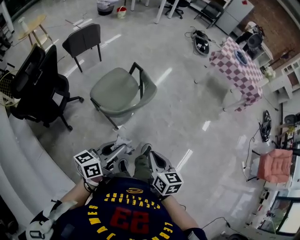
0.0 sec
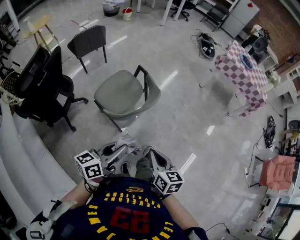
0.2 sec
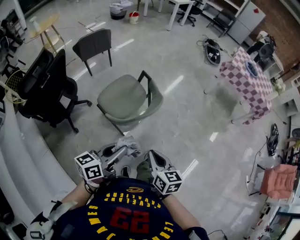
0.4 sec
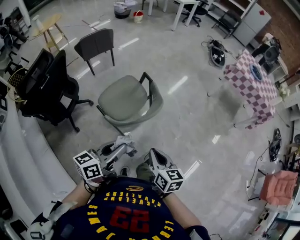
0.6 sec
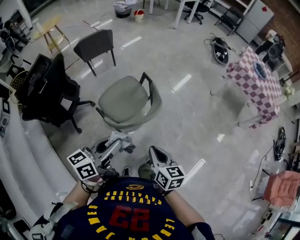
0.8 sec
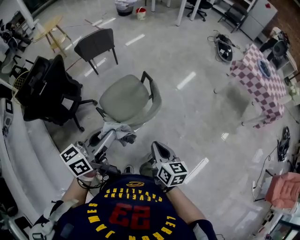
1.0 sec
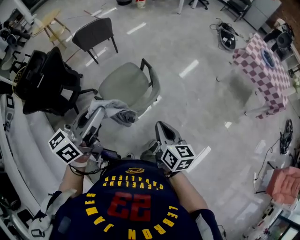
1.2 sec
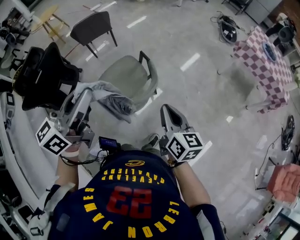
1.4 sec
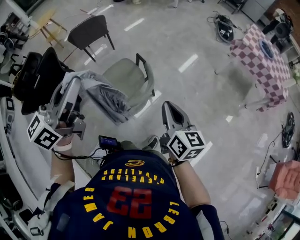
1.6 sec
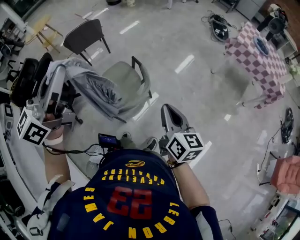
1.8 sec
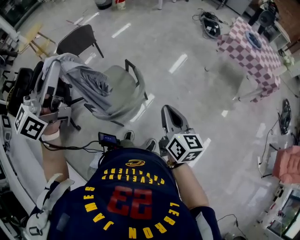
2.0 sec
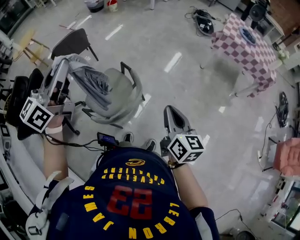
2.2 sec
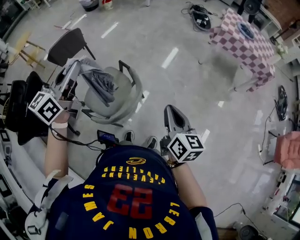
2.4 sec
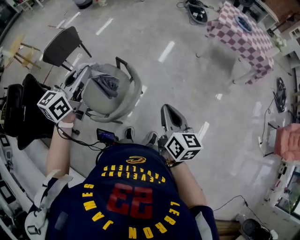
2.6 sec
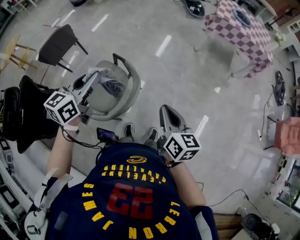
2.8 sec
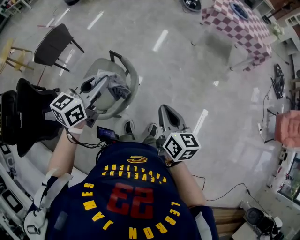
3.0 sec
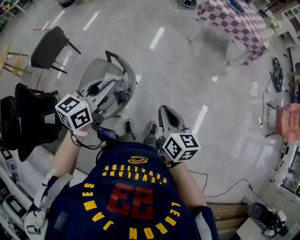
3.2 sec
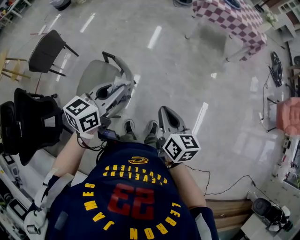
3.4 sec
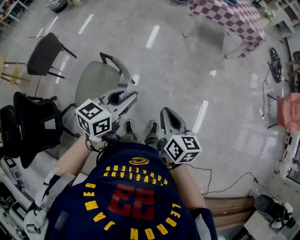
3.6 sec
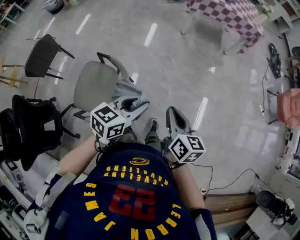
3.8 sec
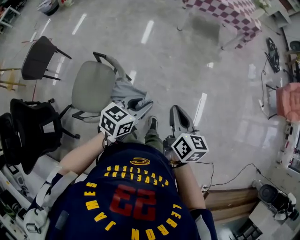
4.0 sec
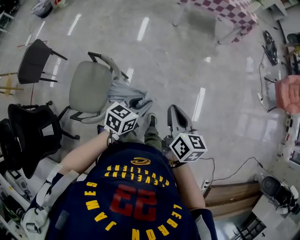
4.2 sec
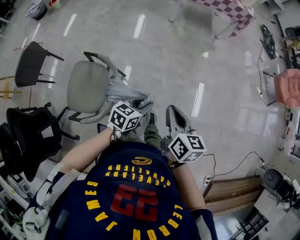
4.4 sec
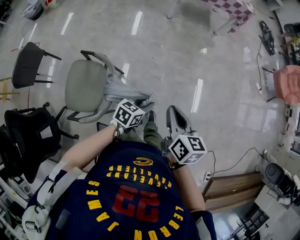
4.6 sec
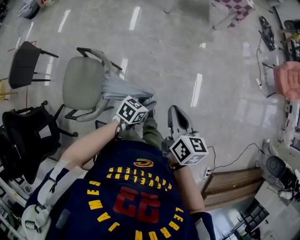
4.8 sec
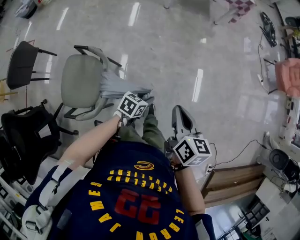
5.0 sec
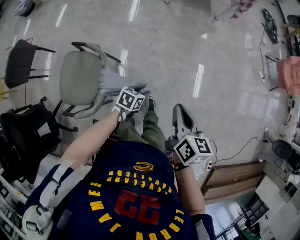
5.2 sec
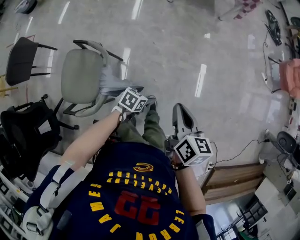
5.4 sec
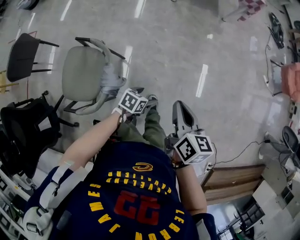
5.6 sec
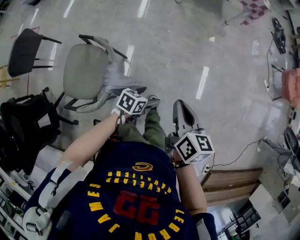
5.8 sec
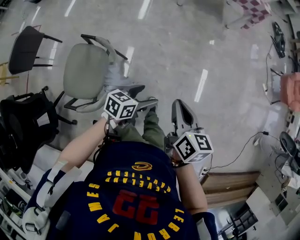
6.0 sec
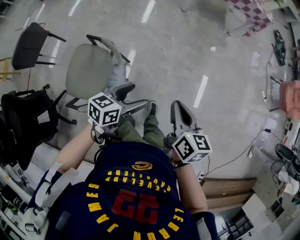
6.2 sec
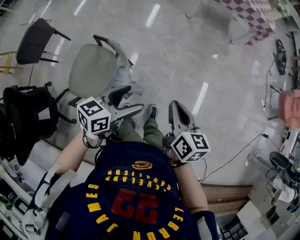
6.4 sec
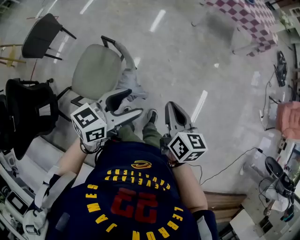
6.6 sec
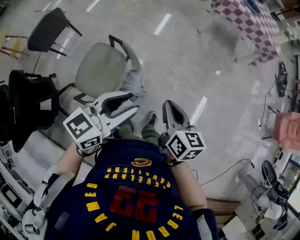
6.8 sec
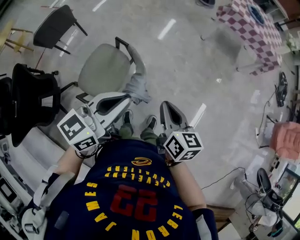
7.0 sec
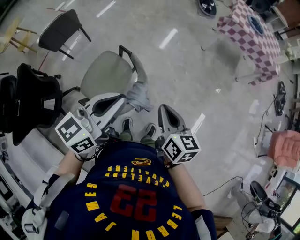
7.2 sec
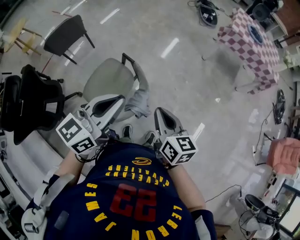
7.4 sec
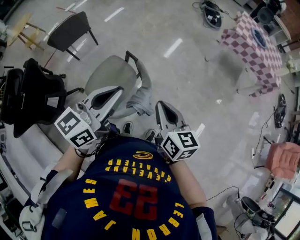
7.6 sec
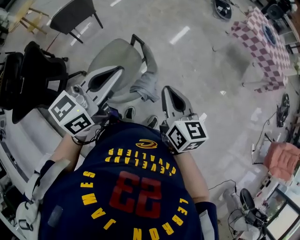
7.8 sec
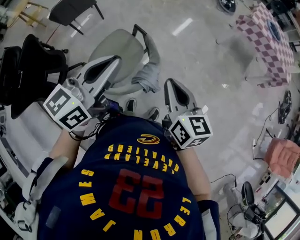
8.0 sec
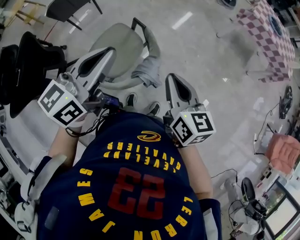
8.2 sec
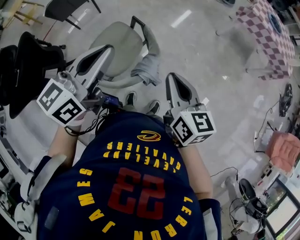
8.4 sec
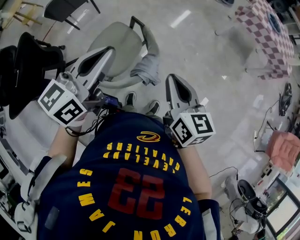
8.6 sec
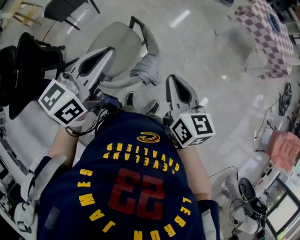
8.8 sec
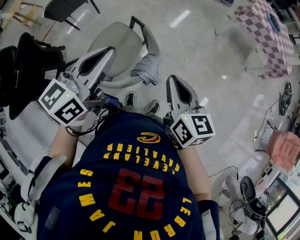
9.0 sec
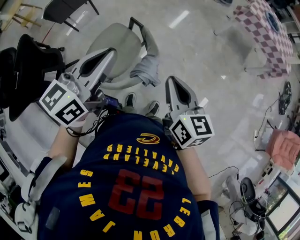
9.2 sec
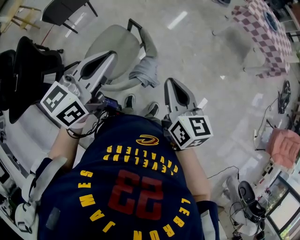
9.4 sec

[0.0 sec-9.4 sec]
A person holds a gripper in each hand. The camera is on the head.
0.0 sec to 1.6 sec: The left gripper is displaced forward and upward by roughly 30 cm, and turns by roughly 40 degrees, while the right gripper is displaced forward and to the right by roughly 30 cm.
1.6 sec to 3.2 sec: The left gripper travels downward by about 20 cm, and turns by approximately 40 degrees. Meanwhile the right gripper shifts approximately 5 cm downward, and changes its angle by some 20 degrees.
3.2 sec to 4.8 sec: The left gripper shifts approximately 30 cm downward, and swivels some 40 degrees. Meanwhile the right gripper changes place by roughly 15 cm, and changes its angle by approximately 20 degrees.
4.8 sec to 6.2 sec: The left gripper travels to the left and upward by some 15 cm, turns by about 20 degrees, and opens up.
6.2 sec to 7.8 sec: The right gripper shifts by about 20 cm, and swivels some 40 degrees; the left gripper heads upward, covering approximately 25 cm, swivels about 50 degrees, and closes.
7.8 sec to 9.4 sec: The grippers make only small movements.

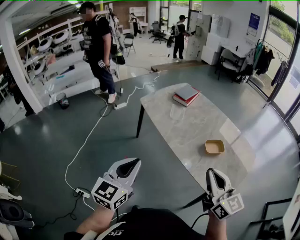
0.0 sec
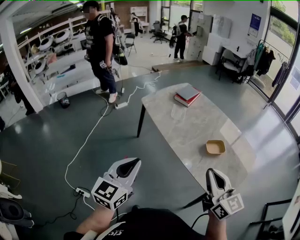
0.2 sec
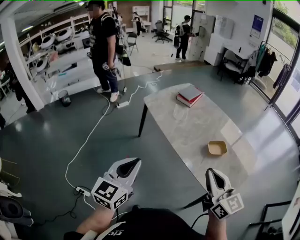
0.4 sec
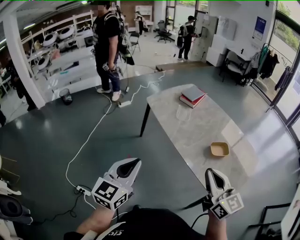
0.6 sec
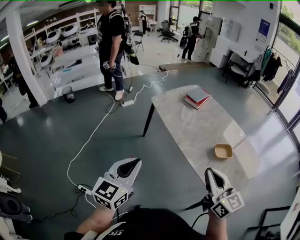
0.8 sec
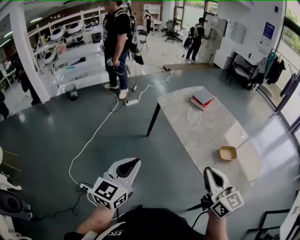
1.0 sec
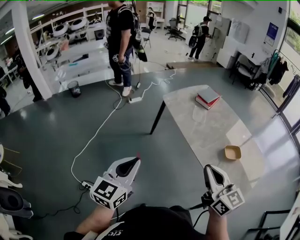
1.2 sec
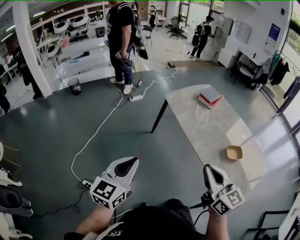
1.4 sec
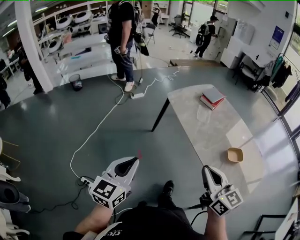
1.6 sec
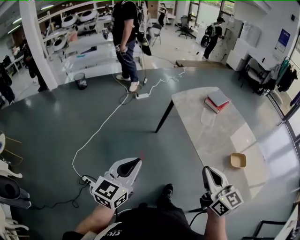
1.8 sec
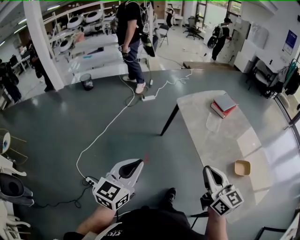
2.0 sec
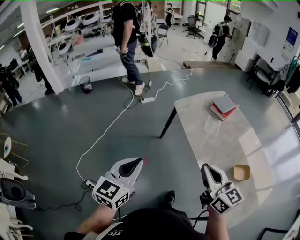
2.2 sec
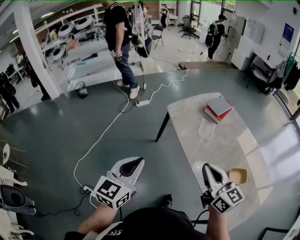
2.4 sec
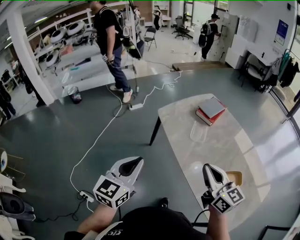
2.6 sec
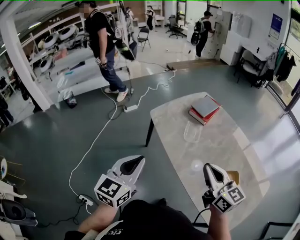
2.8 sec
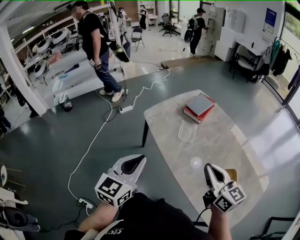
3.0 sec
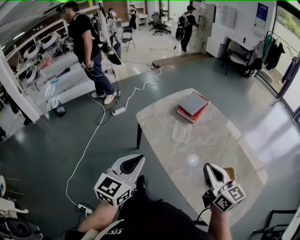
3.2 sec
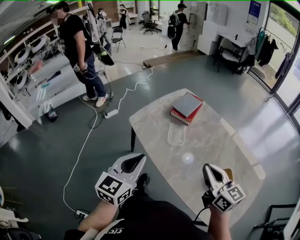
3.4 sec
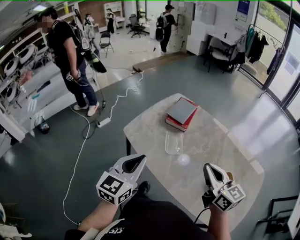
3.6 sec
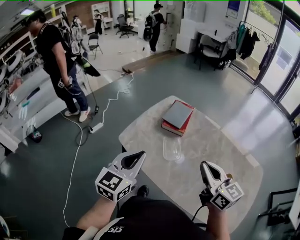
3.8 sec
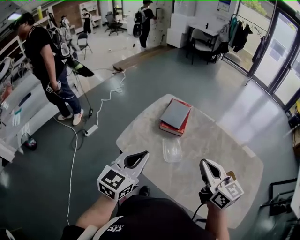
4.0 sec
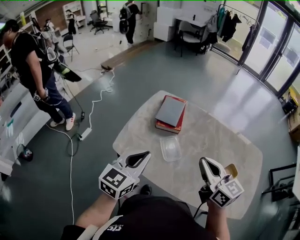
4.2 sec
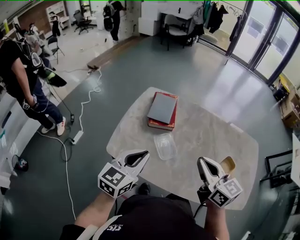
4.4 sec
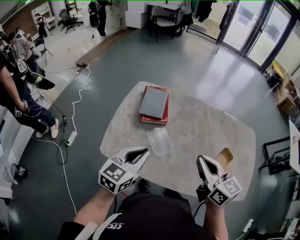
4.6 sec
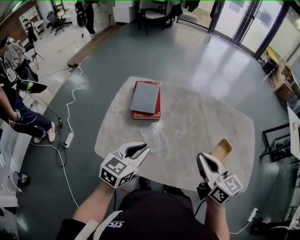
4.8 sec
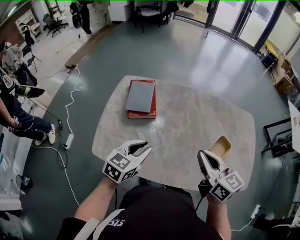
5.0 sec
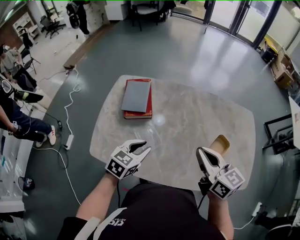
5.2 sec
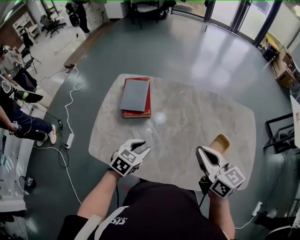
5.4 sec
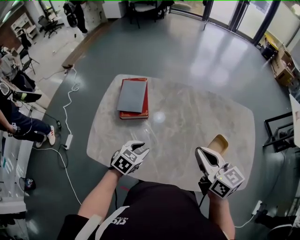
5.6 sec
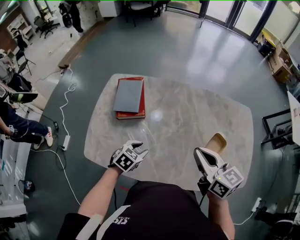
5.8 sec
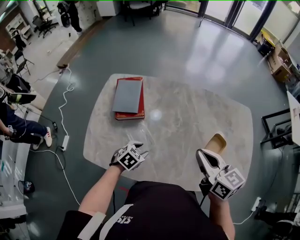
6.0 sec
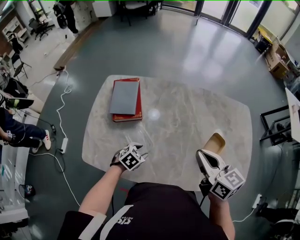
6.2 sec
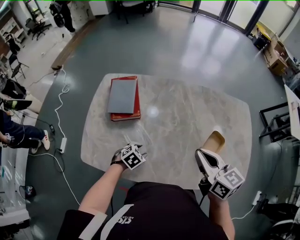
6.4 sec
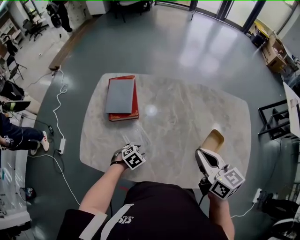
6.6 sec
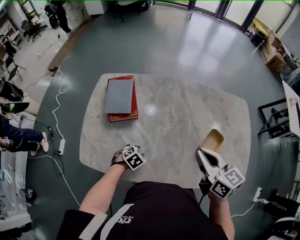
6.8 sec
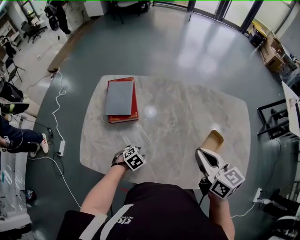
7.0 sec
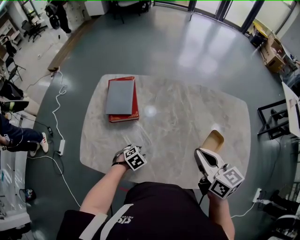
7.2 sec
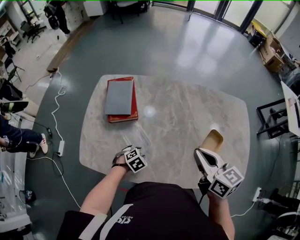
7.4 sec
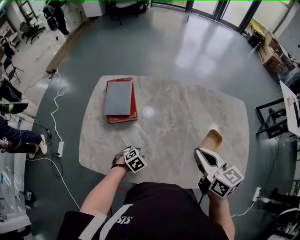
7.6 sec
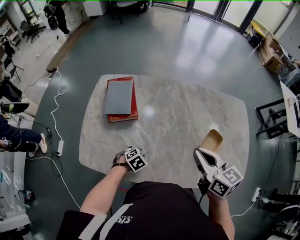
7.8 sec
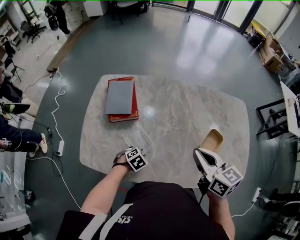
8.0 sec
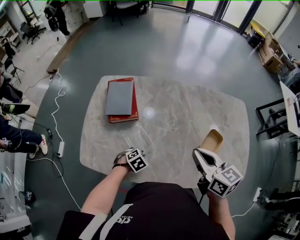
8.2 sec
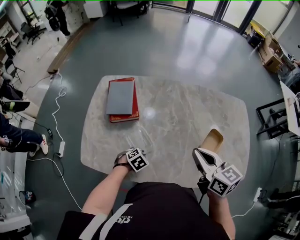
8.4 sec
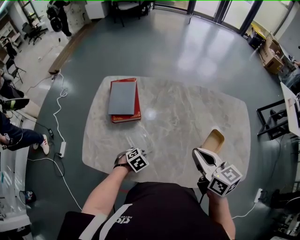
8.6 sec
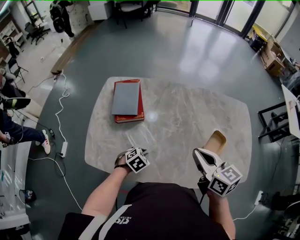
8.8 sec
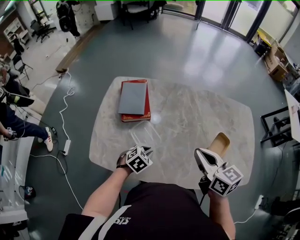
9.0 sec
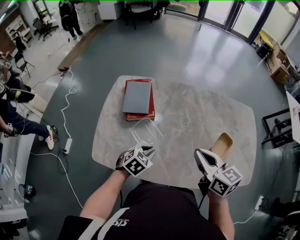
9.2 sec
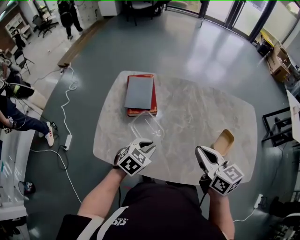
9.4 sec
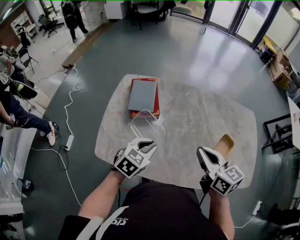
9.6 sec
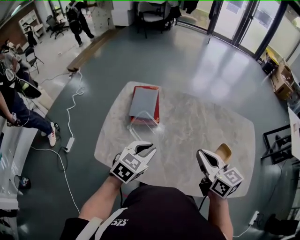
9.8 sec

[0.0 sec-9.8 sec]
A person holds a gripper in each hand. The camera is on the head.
0.0 sec to 1.4 sec: The two grippers go some 15 cm to the left.
1.4 sec to 2.8 sec: Both grippers move forward and to the right, roughly 25 cm.
2.8 sec to 4.2 sec: The right gripper changes place by roughly 20 cm, and turns by roughly 30 degrees. The left gripper shifts by approximately 30 cm, and swivels approximately 40 degrees.
4.2 sec to 5.6 sec: The right gripper travels to the right by approximately 10 cm. Meanwhile the left gripper travels downward, to the right and forward by some 25 cm, tips its fingers downward by about 30 degrees, and opens up.
5.6 sec to 7.0 sec: The left gripper shifts about 15 cm downward, and turns by approximately 30 degrees.
7.0 sec to 8.4 sec: The left gripper closes.
8.4 sec to 9.8 sec: The left gripper moves upward, approximately 25 cm, and angles its fingers upward, by about 30 degrees, while the right gripper shifts roughly 5 cm to the left.

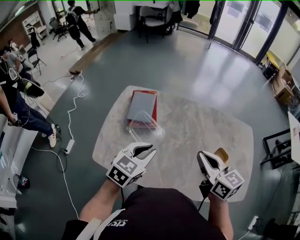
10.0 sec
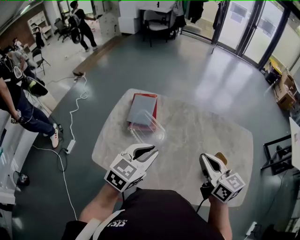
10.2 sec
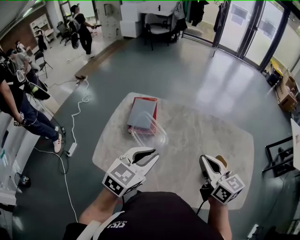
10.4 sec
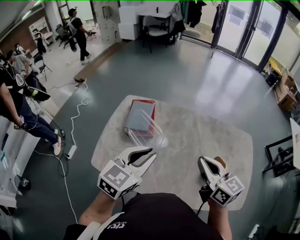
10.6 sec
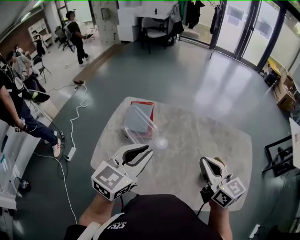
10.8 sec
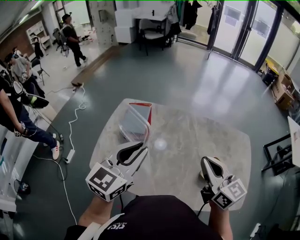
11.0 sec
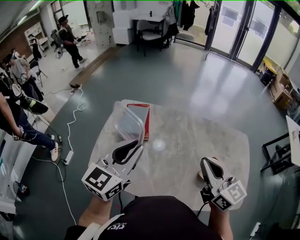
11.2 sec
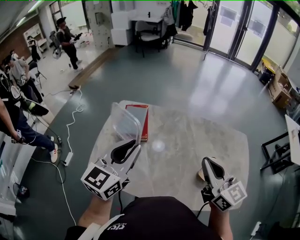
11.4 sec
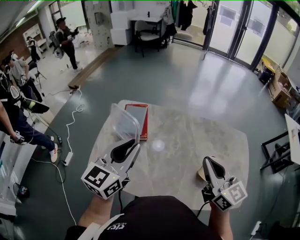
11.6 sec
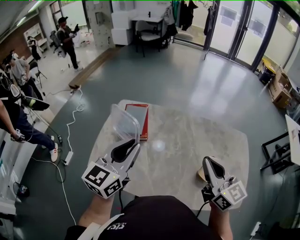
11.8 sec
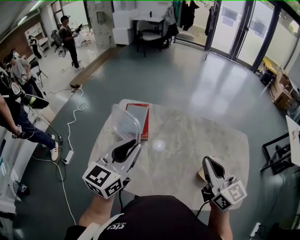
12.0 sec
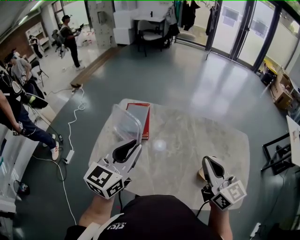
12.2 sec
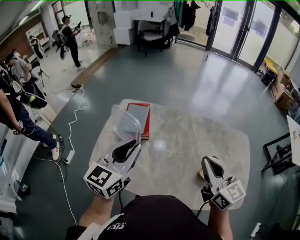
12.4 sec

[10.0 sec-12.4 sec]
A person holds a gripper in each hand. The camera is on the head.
10.0 sec to 11.2 sec: The left gripper is displaced upward by some 15 cm, and swivels approximately 30 degrees. The right gripper is displaced upward by approximately 5 cm.
11.2 sec to 12.4 sec: The grippers make only small movements.

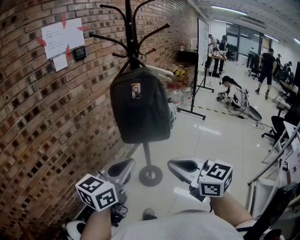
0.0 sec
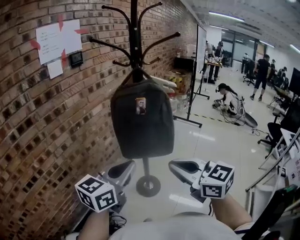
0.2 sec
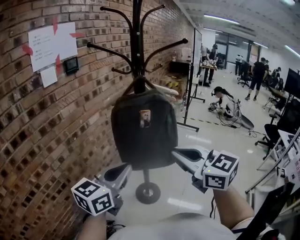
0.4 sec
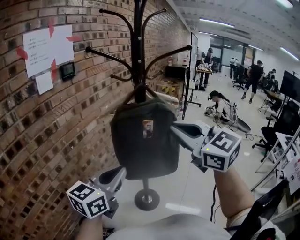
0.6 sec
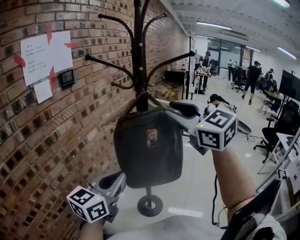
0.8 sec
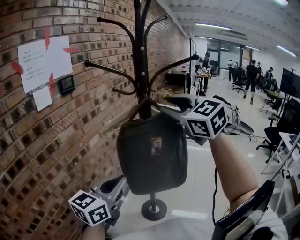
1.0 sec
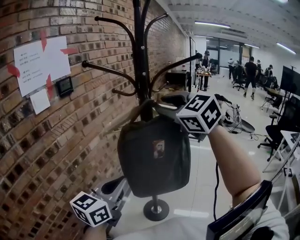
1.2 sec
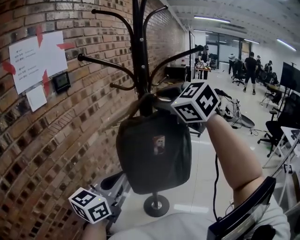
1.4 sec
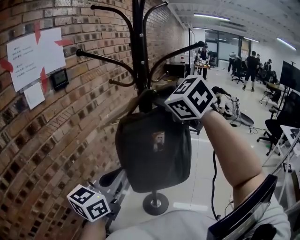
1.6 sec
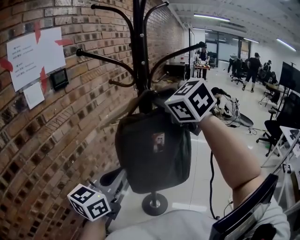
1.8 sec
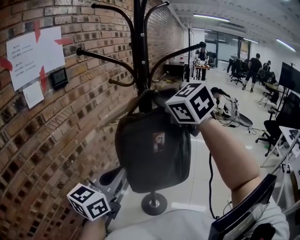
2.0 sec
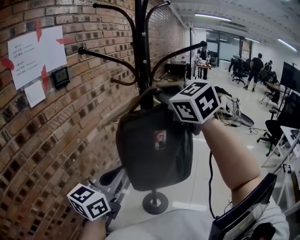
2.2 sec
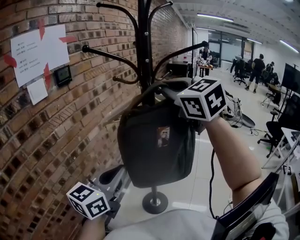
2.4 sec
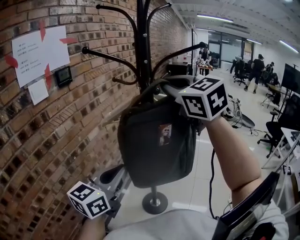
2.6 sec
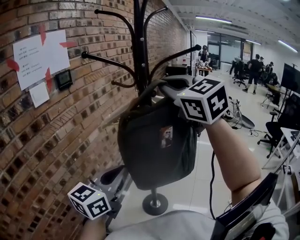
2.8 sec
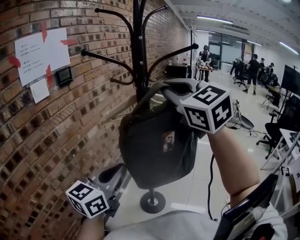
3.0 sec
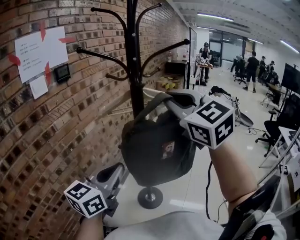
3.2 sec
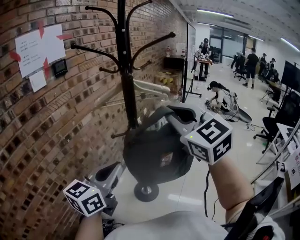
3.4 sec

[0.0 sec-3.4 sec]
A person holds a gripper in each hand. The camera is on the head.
0.0 sec to 1.6 sec: The right gripper travels forward and upward by roughly 50 cm, swivels roughly 40 degrees, and opens, then closes again, while the left gripper moves forward and to the left, roughly 30 cm.
1.6 sec to 3.4 sec: The left gripper is displaced backward and to the right by about 10 cm, while the right gripper travels backward and to the right by about 20 cm.
